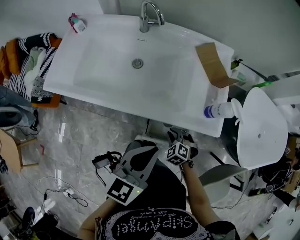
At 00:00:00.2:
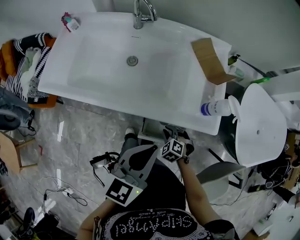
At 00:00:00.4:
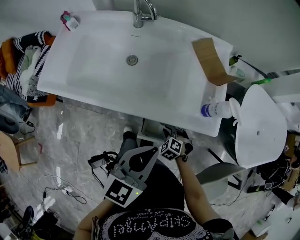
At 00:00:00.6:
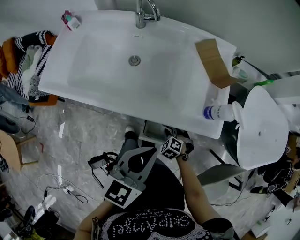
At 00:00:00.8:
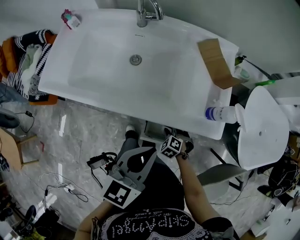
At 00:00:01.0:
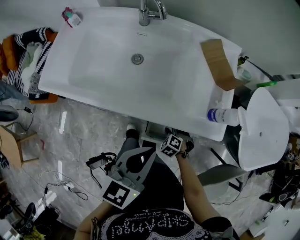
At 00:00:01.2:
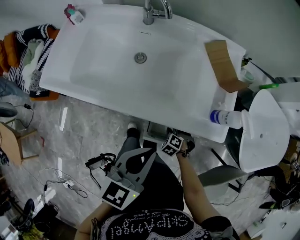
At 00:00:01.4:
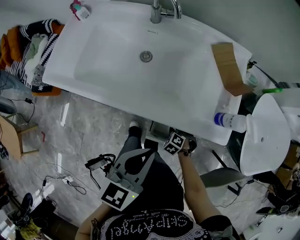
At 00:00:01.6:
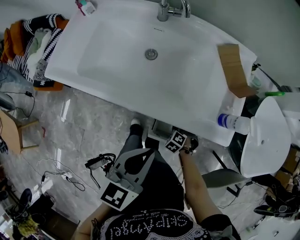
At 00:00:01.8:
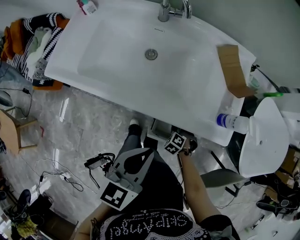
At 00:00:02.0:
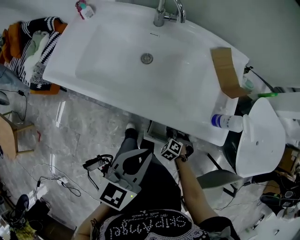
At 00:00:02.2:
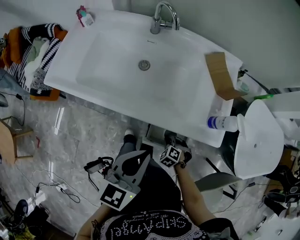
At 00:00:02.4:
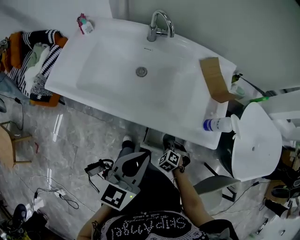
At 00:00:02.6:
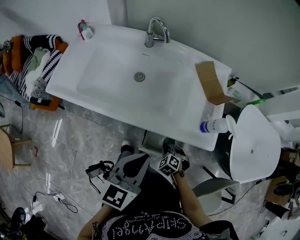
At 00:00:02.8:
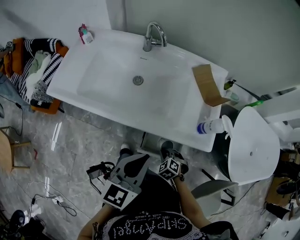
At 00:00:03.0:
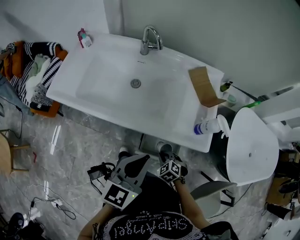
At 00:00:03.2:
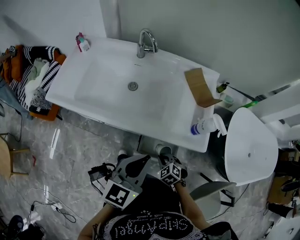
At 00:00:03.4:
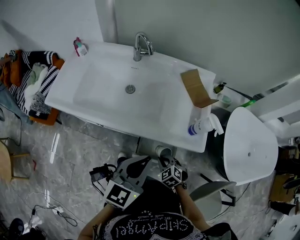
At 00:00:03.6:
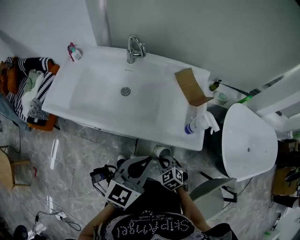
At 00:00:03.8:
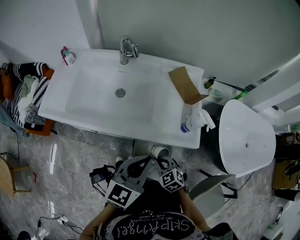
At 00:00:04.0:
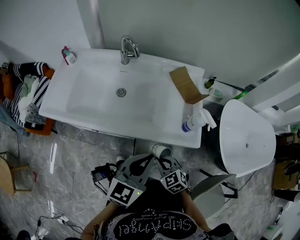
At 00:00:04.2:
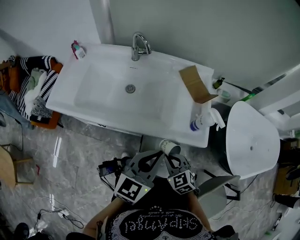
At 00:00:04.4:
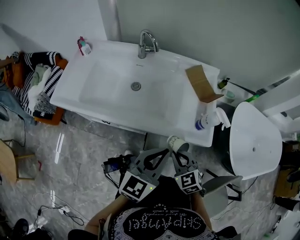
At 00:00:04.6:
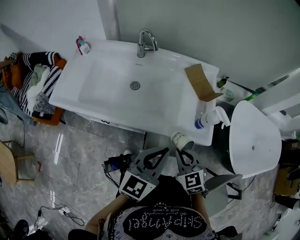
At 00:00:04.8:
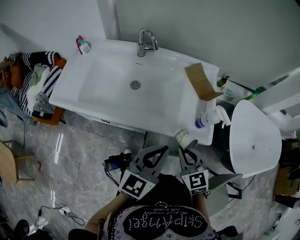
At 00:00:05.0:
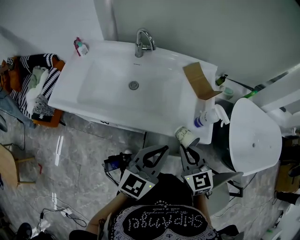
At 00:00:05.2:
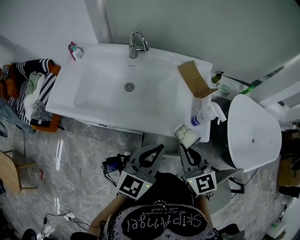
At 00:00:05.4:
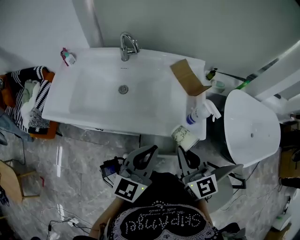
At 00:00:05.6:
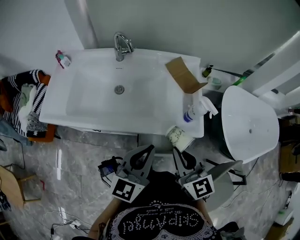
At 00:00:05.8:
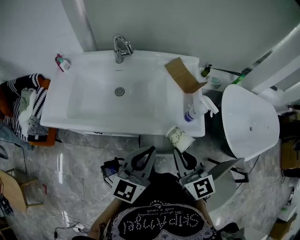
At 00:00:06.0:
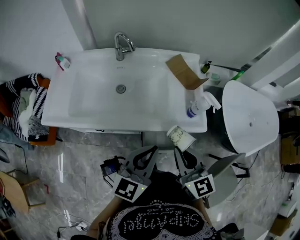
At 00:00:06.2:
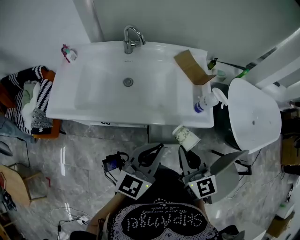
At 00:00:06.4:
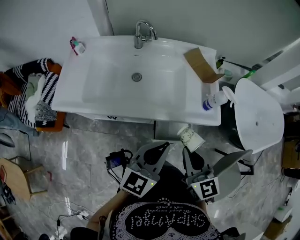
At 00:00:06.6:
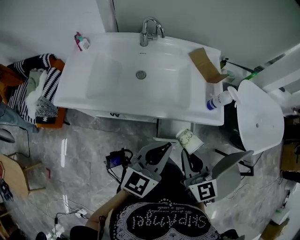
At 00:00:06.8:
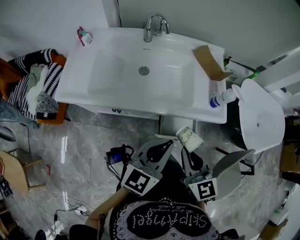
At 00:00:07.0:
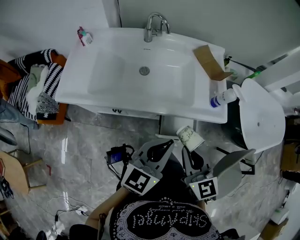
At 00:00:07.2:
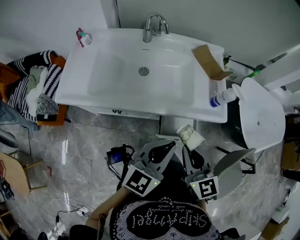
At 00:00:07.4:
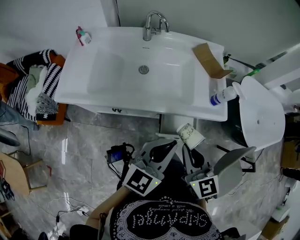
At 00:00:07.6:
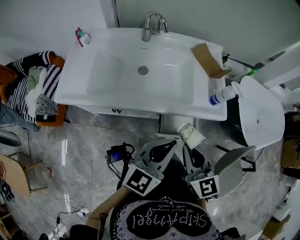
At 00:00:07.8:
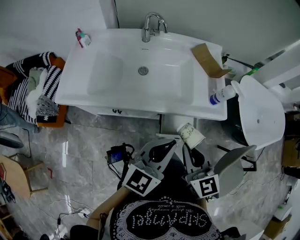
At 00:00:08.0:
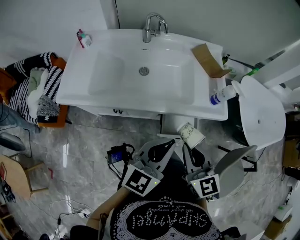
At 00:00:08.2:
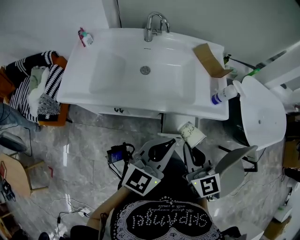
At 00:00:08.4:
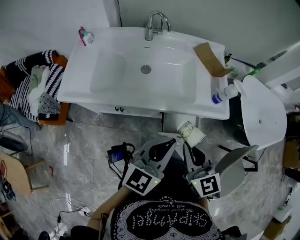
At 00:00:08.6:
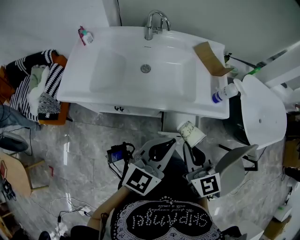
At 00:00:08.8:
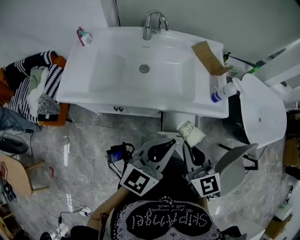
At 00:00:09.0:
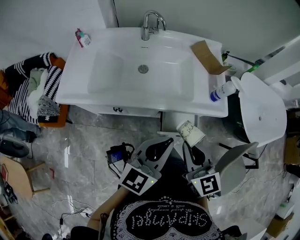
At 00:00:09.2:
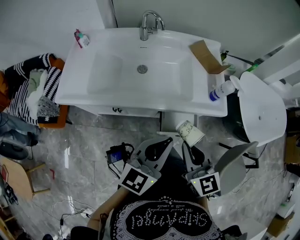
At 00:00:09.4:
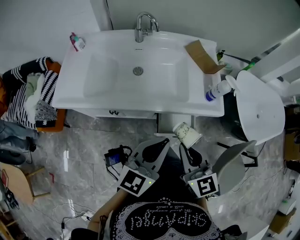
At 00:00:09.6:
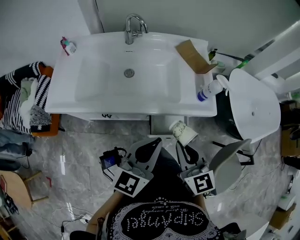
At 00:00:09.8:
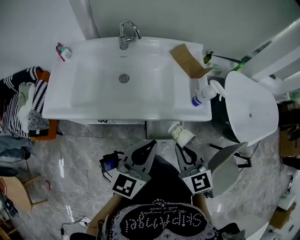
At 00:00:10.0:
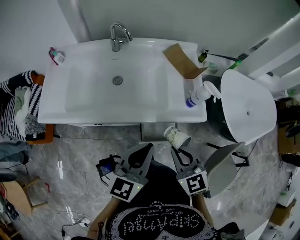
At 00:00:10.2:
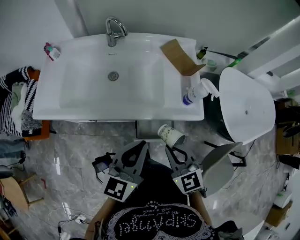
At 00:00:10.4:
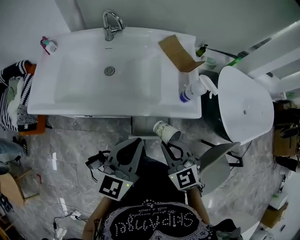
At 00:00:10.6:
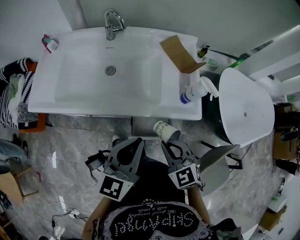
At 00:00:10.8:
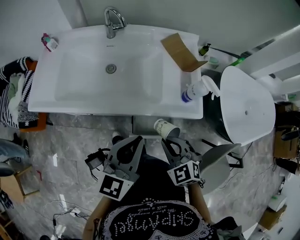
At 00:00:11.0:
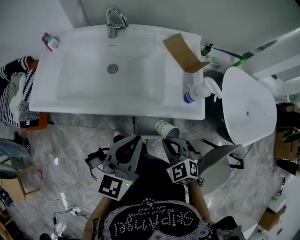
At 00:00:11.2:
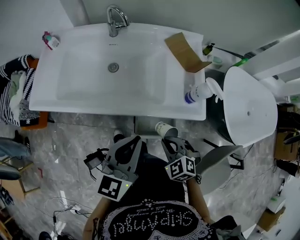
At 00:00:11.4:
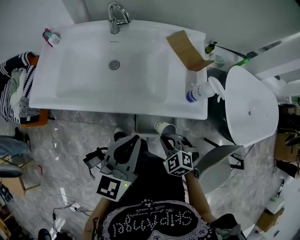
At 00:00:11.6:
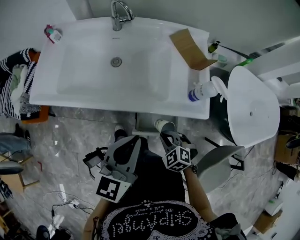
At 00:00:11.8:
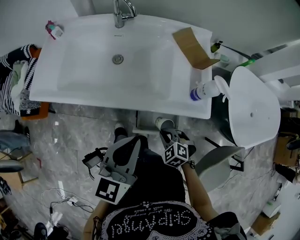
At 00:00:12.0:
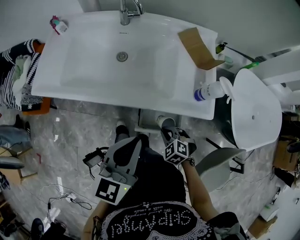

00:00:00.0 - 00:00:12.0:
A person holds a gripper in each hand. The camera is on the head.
00:00:00.0 - 00:00:01.6: The left gripper moves some 5 cm. Meanwhile the right gripper shifts about 10 cm downward.
00:00:01.6 - 00:00:03.0: The right gripper shifts about 10 cm upward, and rotates roughly 20 degrees, while the left gripper ends up about 5 cm from where it was.
00:00:03.0 - 00:00:04.4: The right gripper heads upward, covering roughly 20 cm, and turns by approximately 30 degrees.
00:00:04.4 - 00:00:06.0: The right gripper goes about 15 cm upward, and changes its angle by some 40 degrees.
00:00:06.0 - 00:00:07.6: The left gripper moves backward, about 5 cm. The right gripper travels to the left and backward by approximately 10 cm.
00:00:07.6 - 00:00:09.0: The grippers stay close to where they were, moving slightly.
00:00:09.0 - 00:00:10.4: The left gripper heads forward, covering approximately 5 cm. Meanwhile the right gripper goes about 10 cm downward and to the right, and changes its angle by roughly 30 degrees.
00:00:10.4 - 00:00:12.0: The right gripper heads downward, covering some 20 cm, and changes its angle by some 30 degrees.

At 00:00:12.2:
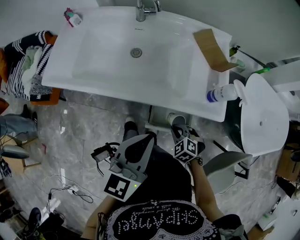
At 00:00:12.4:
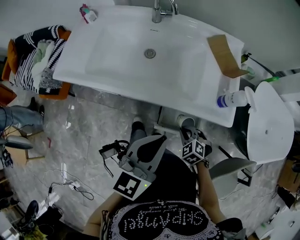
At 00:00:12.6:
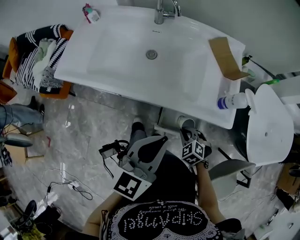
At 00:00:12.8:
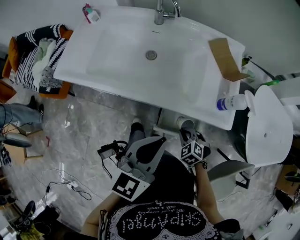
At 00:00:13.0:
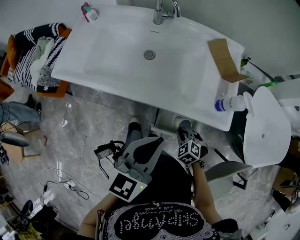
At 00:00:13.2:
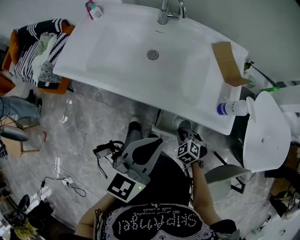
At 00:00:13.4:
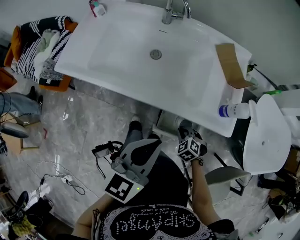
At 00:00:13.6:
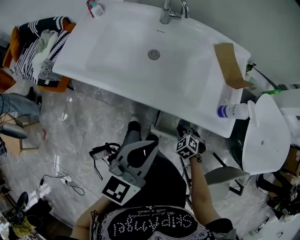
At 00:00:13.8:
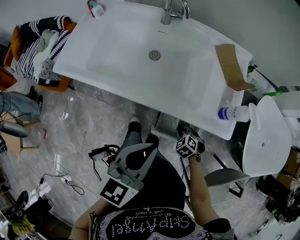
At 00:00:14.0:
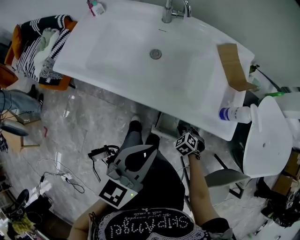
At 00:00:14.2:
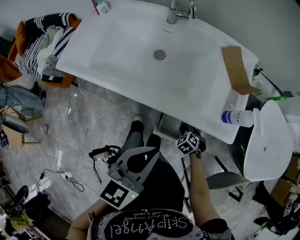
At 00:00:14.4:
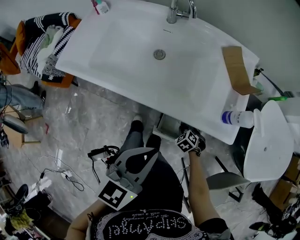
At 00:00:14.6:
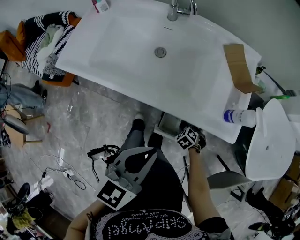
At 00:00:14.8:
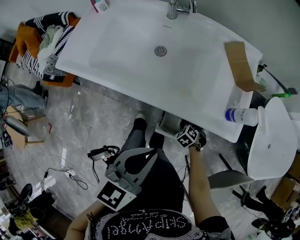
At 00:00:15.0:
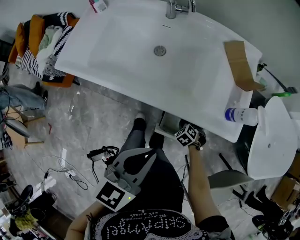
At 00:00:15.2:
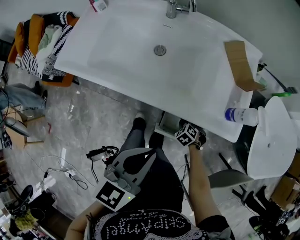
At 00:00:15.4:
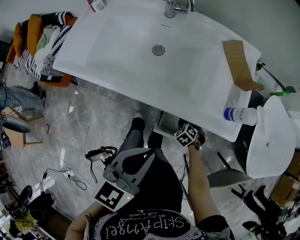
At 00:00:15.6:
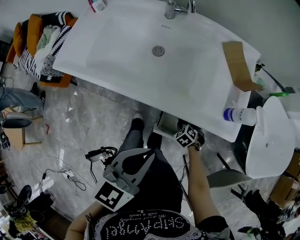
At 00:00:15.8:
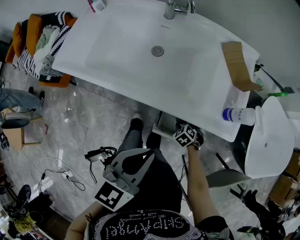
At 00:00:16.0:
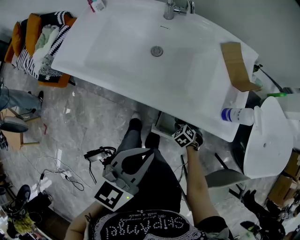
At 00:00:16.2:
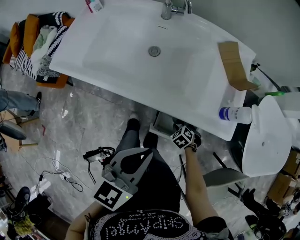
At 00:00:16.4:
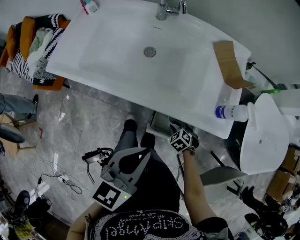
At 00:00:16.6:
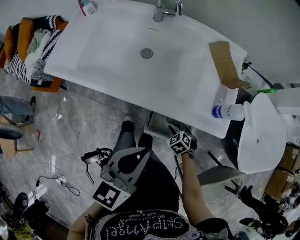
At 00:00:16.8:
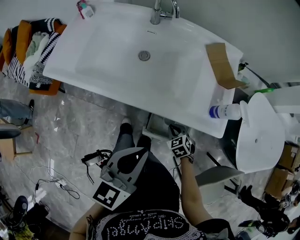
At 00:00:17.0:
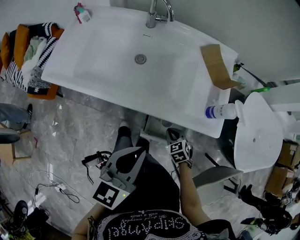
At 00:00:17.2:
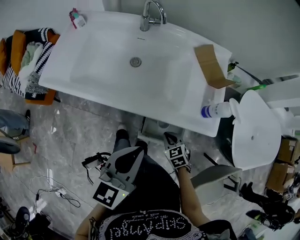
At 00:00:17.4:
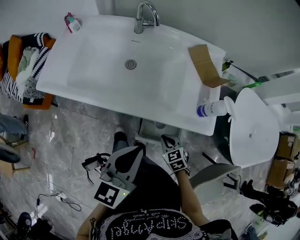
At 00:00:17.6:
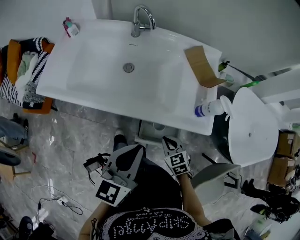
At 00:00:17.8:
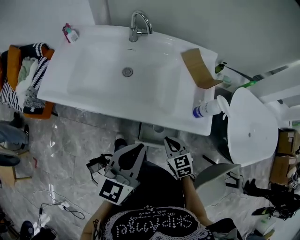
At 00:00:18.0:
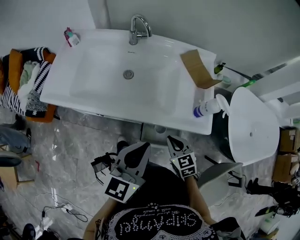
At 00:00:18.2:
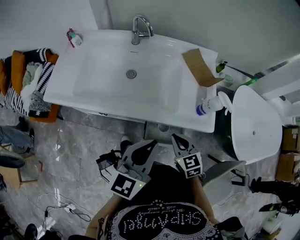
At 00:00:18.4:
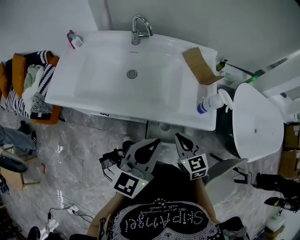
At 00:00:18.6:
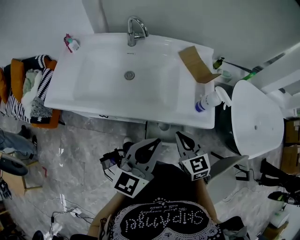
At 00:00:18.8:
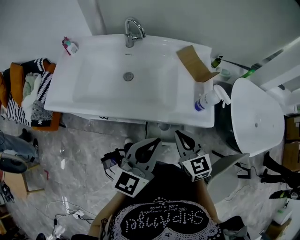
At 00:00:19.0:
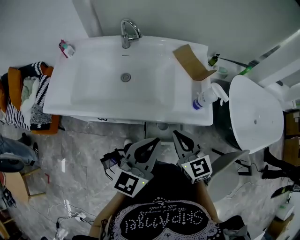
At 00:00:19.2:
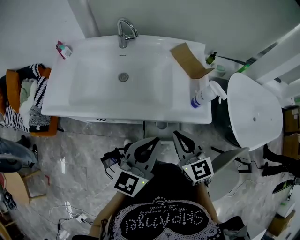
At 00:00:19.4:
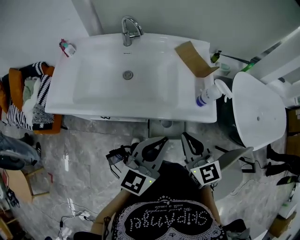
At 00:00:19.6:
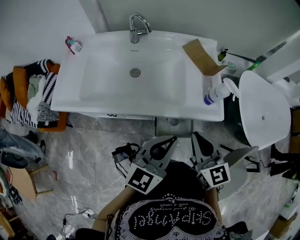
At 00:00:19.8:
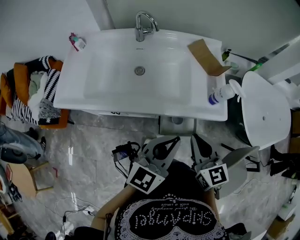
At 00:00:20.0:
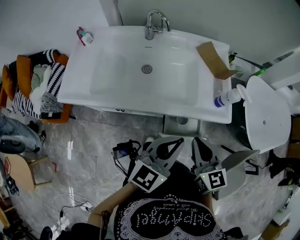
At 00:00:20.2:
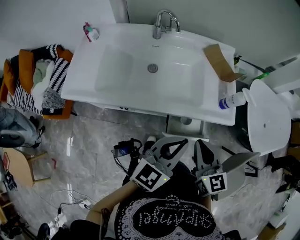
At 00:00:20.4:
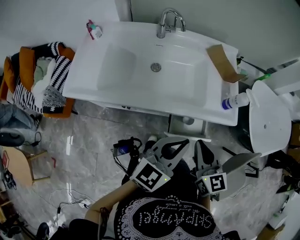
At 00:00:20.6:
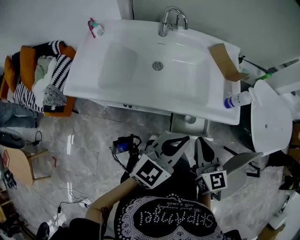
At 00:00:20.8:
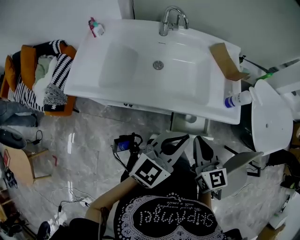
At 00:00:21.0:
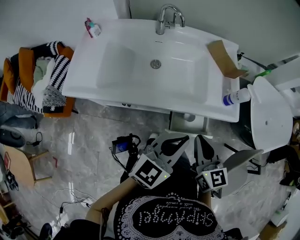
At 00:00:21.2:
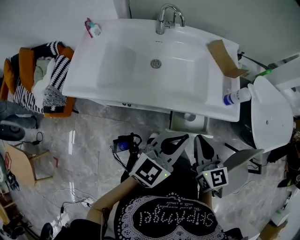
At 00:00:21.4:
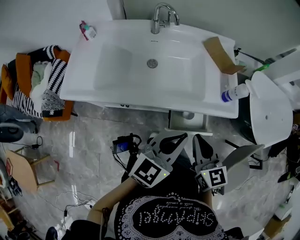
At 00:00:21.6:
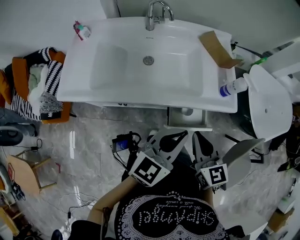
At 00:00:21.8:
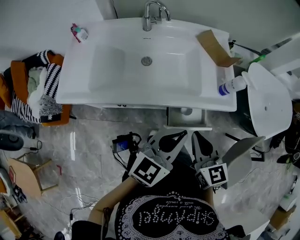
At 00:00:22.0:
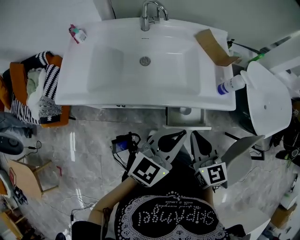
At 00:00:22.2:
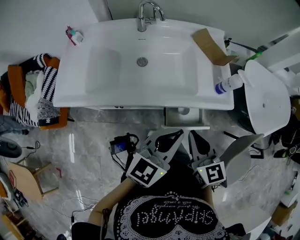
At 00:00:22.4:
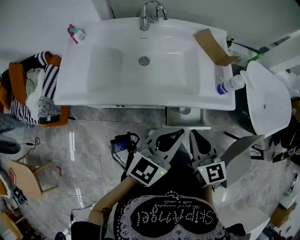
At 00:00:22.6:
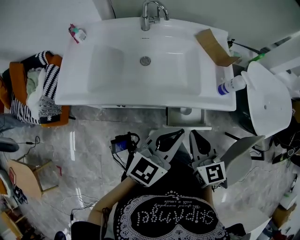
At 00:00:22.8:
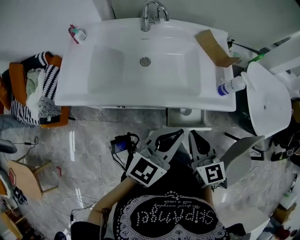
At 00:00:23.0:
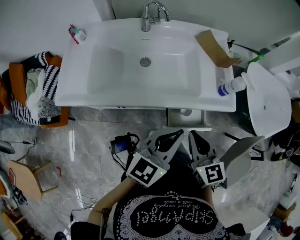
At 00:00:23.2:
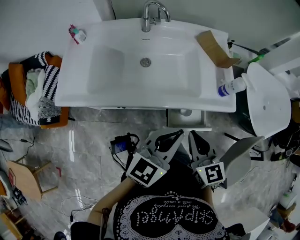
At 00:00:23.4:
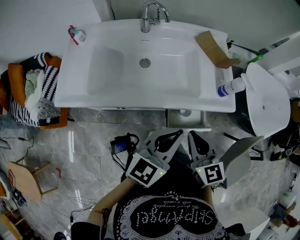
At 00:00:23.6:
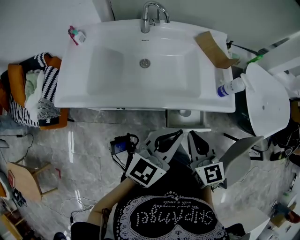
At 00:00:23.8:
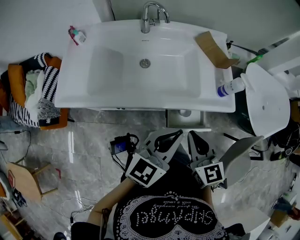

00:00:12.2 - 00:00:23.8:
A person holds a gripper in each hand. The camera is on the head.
00:00:12.2 - 00:00:13.6: The right gripper is displaced downward by some 5 cm.
00:00:13.6 - 00:00:15.0: The right gripper is displaced downward by roughly 10 cm.
00:00:15.0 - 00:00:16.6: The right gripper heads upward, covering about 5 cm.
00:00:16.6 - 00:00:18.0: The right gripper goes roughly 20 cm upward, and turns by about 40 degrees.
00:00:18.0 - 00:00:19.4: The right gripper travels upward by roughly 15 cm, and changes its angle by approximately 20 degrees.
00:00:19.4 - 00:00:21.0: The two grippers go approximately 5 cm to the left.
00:00:21.0 - 00:00:23.8: There are only small adjustments of the grippers.
